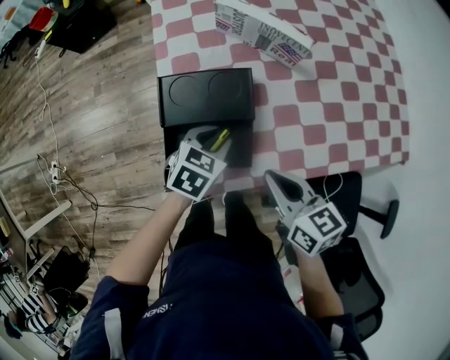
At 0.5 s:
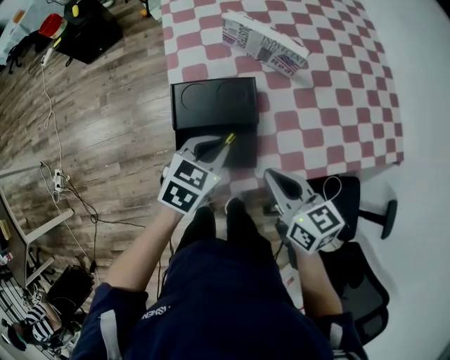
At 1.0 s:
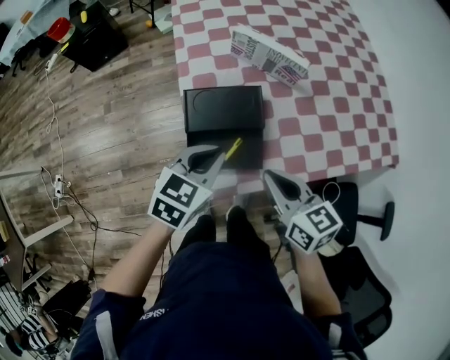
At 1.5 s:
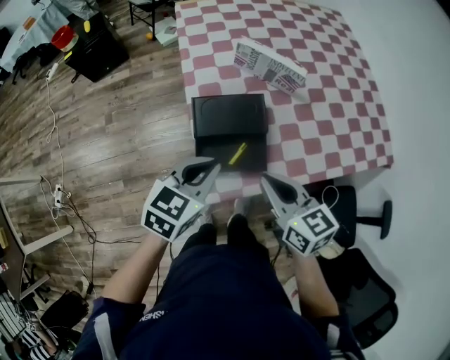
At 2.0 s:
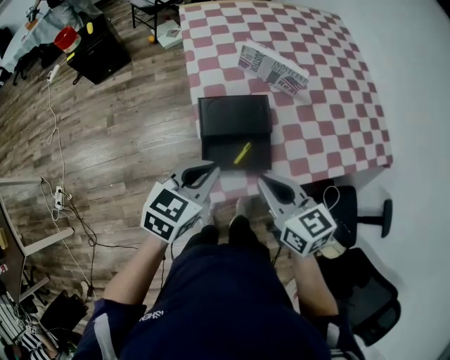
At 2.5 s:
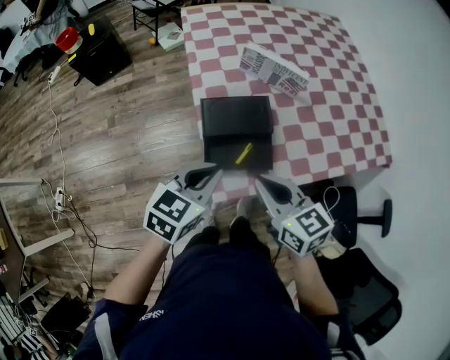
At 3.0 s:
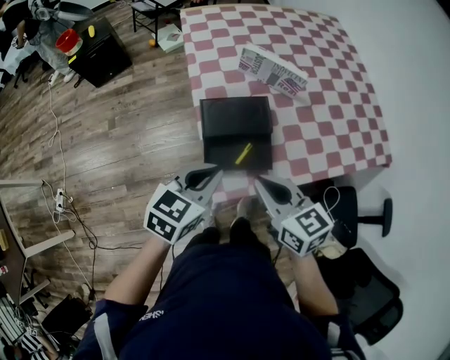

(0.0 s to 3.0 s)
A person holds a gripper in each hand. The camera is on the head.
0.0 s - 1.5 s: The left gripper heads upward, to the left and backward, covering about 20 cm, rotates approximately 20 degrees, and closes up, while the right gripper travels upward and to the left by approximately 10 cm.
1.5 s - 3.0 s: There are only small adjustments of the grippers.

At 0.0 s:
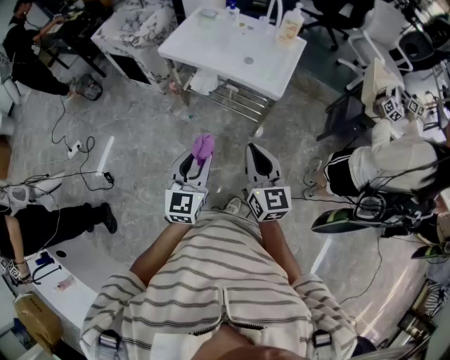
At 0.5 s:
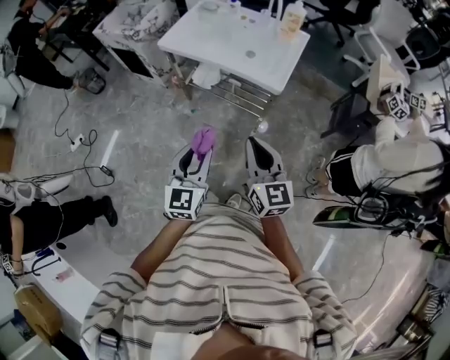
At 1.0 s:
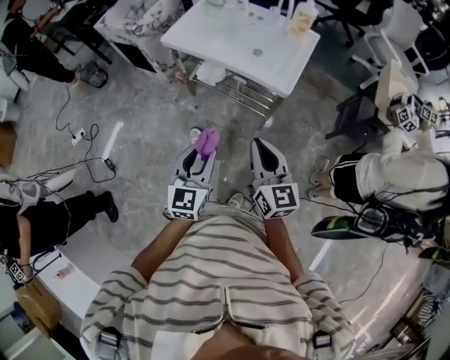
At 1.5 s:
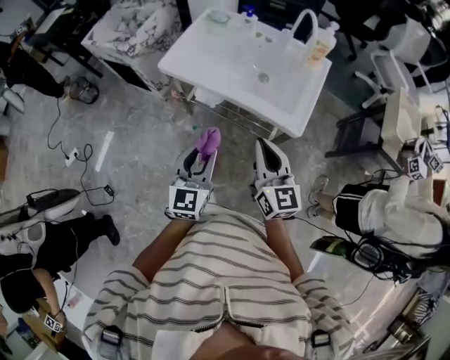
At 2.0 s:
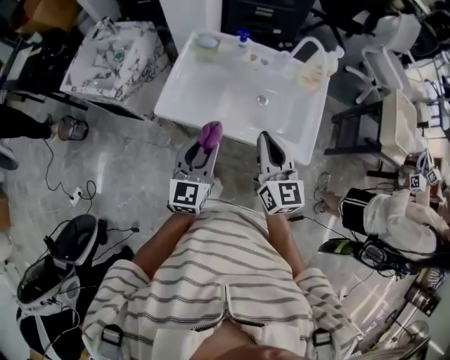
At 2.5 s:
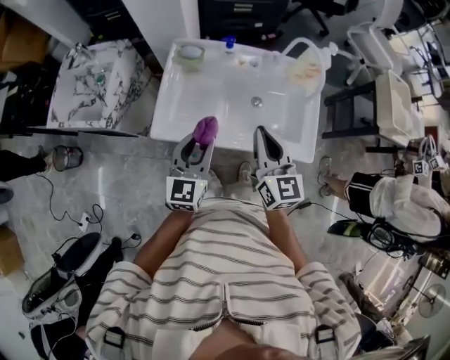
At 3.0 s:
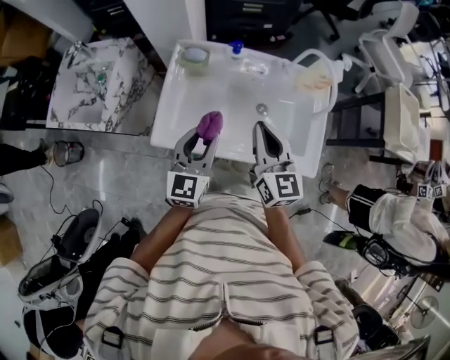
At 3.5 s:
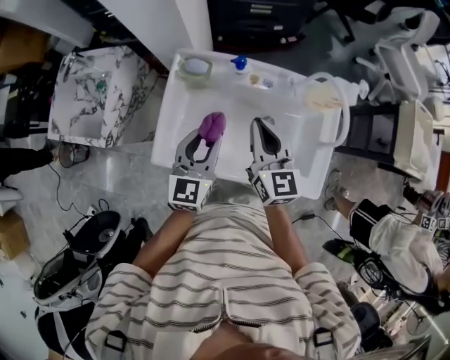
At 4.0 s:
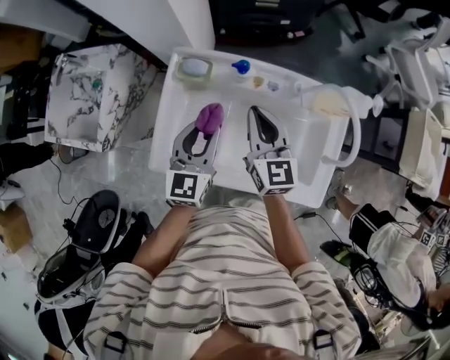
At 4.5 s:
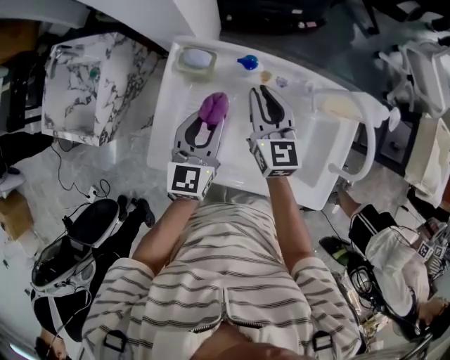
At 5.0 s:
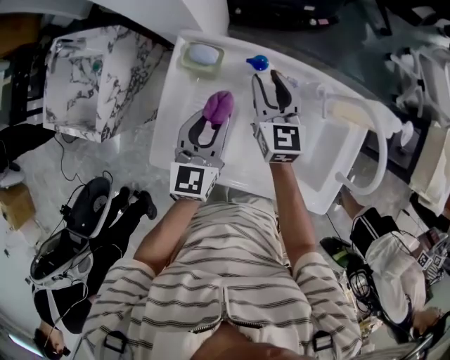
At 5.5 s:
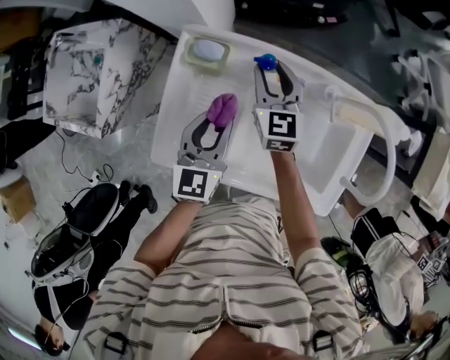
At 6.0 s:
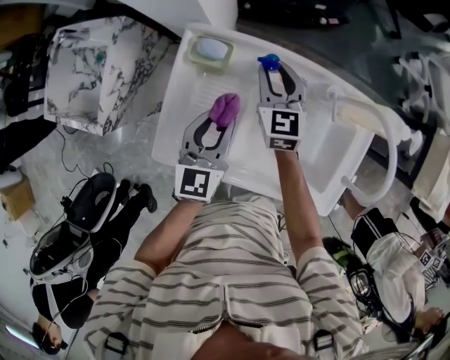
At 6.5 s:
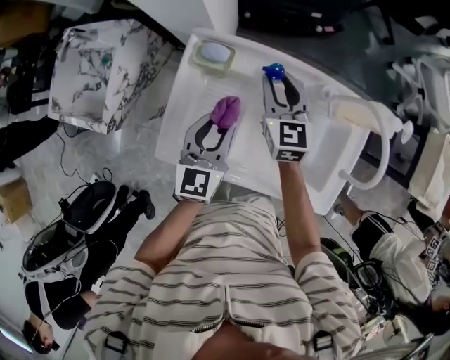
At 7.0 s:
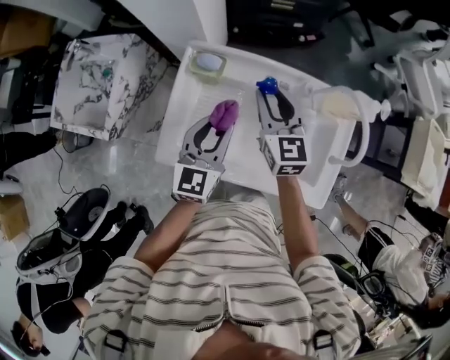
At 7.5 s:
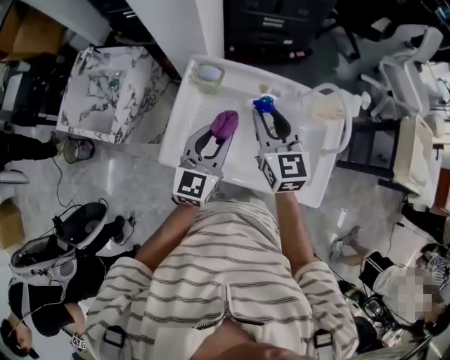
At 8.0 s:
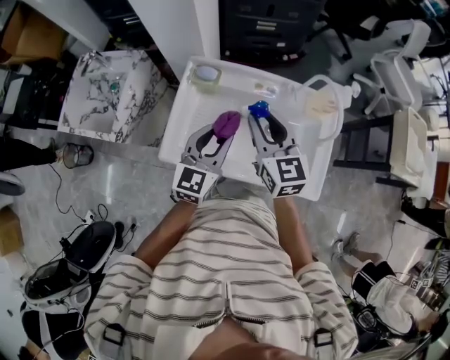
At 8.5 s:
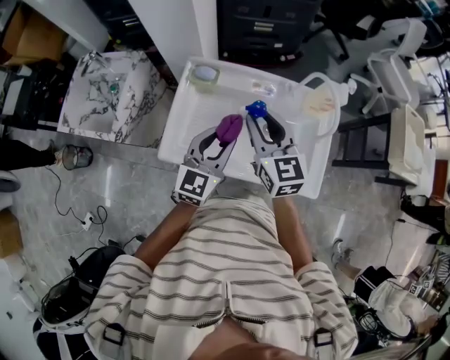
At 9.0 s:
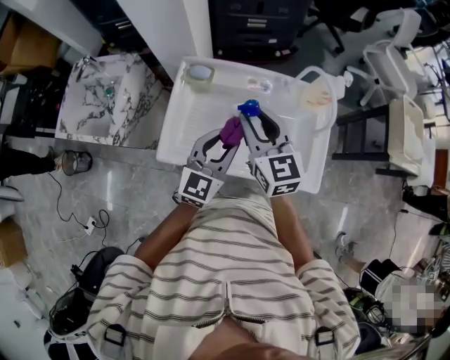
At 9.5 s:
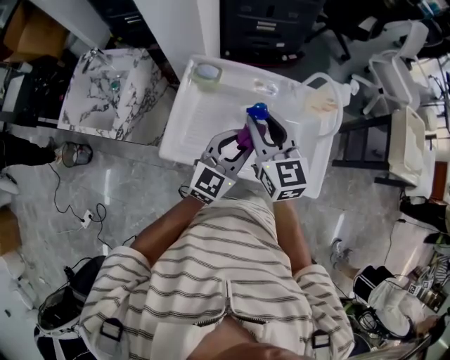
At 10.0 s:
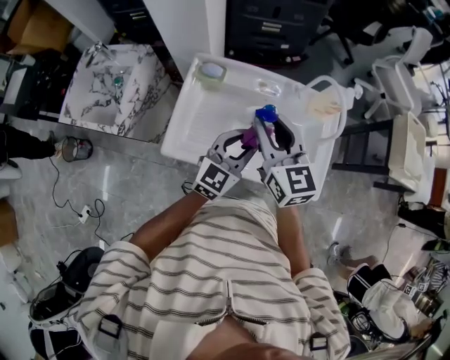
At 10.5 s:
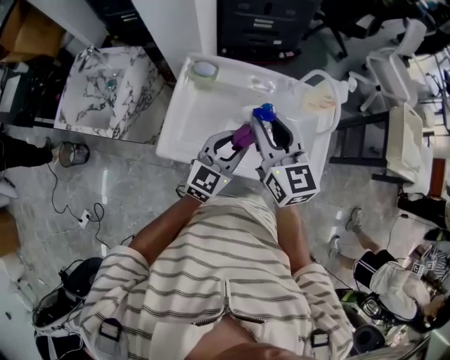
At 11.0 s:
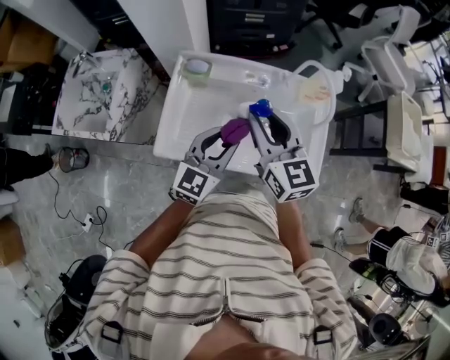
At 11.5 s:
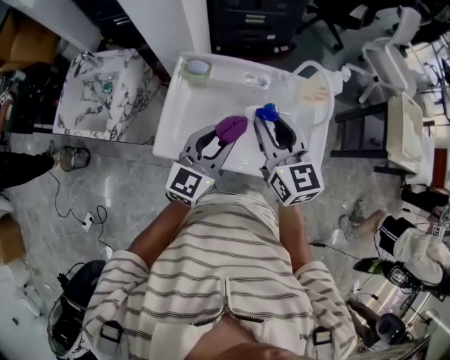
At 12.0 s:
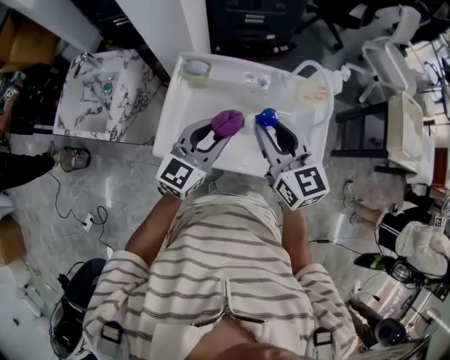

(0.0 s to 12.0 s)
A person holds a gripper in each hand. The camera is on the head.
0.0 s - 2.0 s: Both grippers are carried forward, approximately 50 cm.
2.0 s - 4.0 s: The grippers both shift forward by some 30 cm.
4.0 s - 6.0 s: The right gripper shifts some 15 cm forward and downward, and opens. The left gripper goes about 5 cm downward.
6.0 s - 8.0 s: The left gripper moves upward and backward, some 15 cm; the right gripper is displaced backward and upward by roughly 30 cm.
8.0 s - 10.0 s: The left gripper travels to the right by about 5 cm.
10.0 s - 12.0 s: The right gripper moves approximately 5 cm. Meanwhile the left gripper ends up approximately 5 cm from where it was.

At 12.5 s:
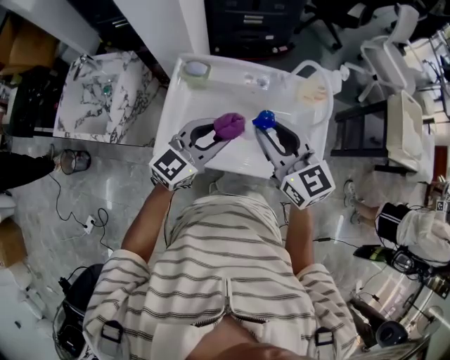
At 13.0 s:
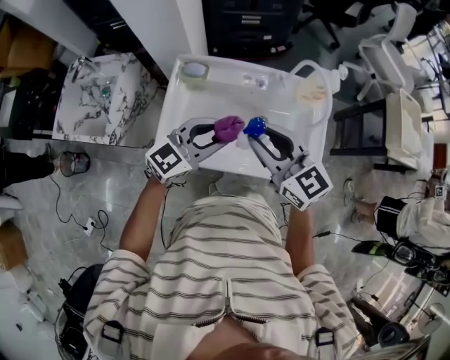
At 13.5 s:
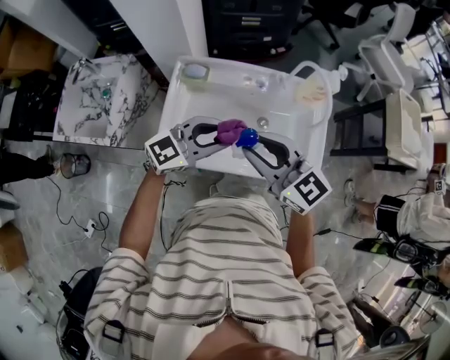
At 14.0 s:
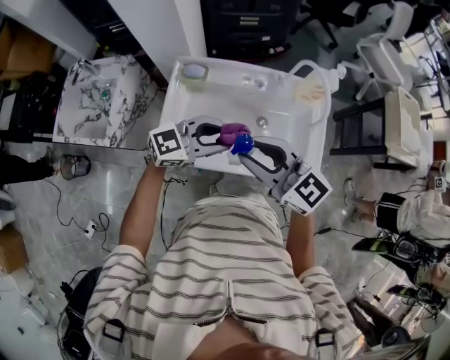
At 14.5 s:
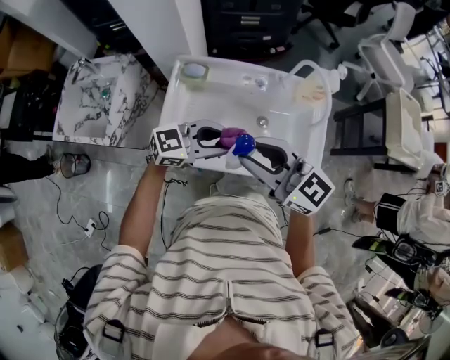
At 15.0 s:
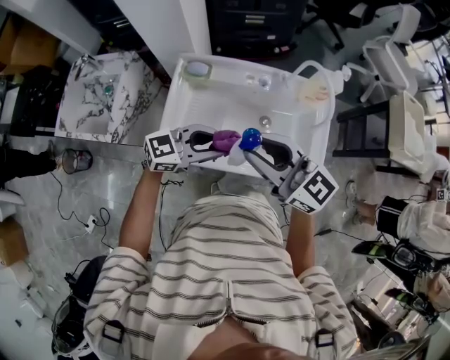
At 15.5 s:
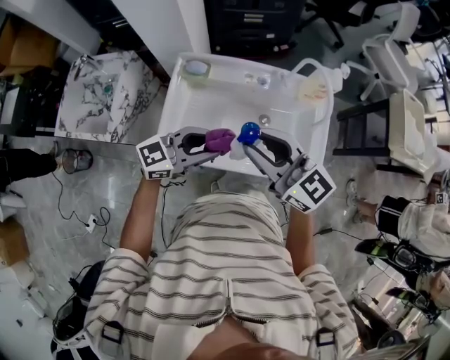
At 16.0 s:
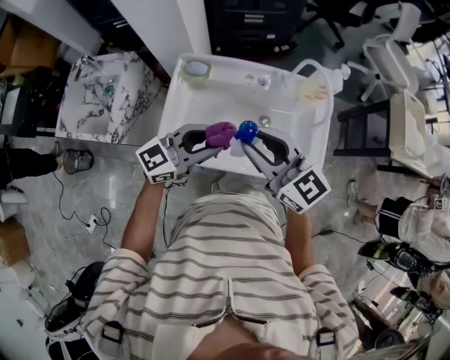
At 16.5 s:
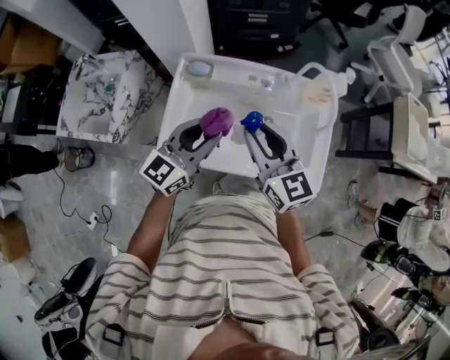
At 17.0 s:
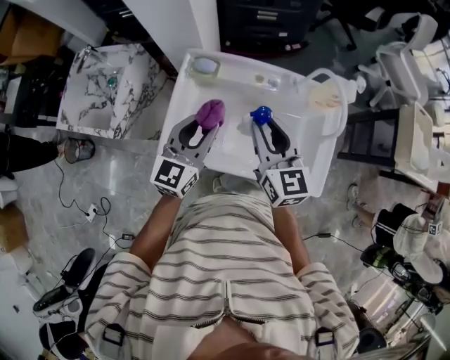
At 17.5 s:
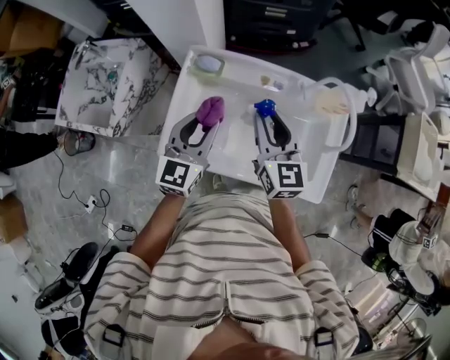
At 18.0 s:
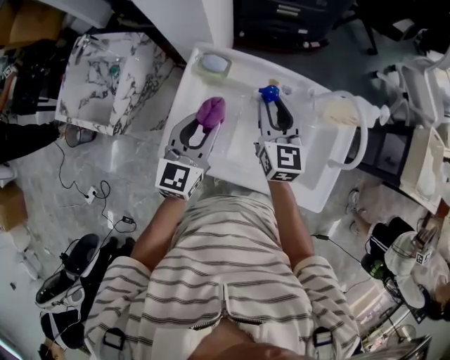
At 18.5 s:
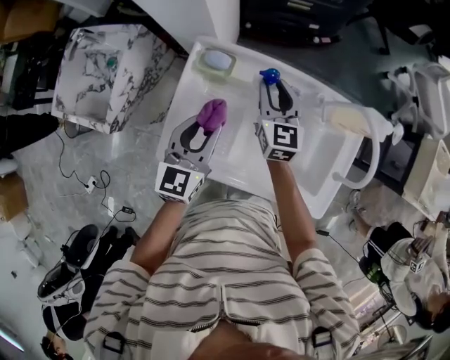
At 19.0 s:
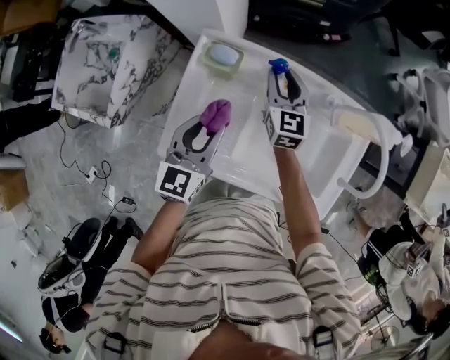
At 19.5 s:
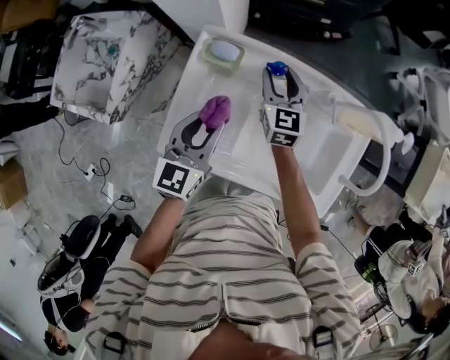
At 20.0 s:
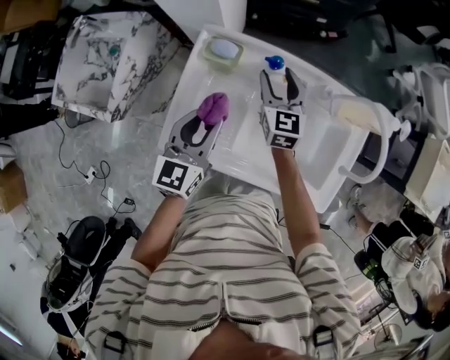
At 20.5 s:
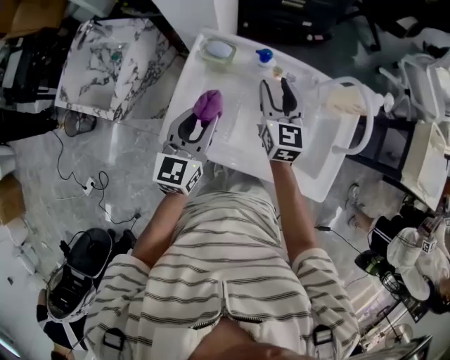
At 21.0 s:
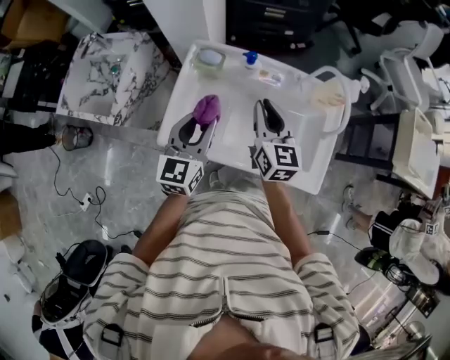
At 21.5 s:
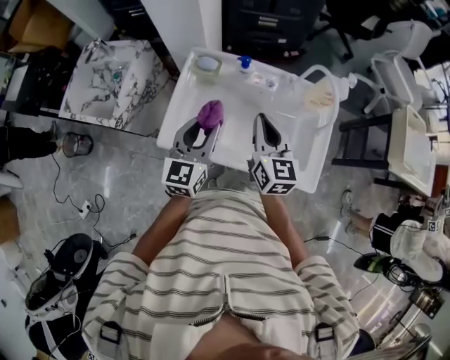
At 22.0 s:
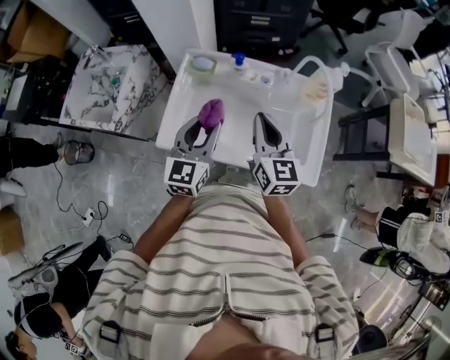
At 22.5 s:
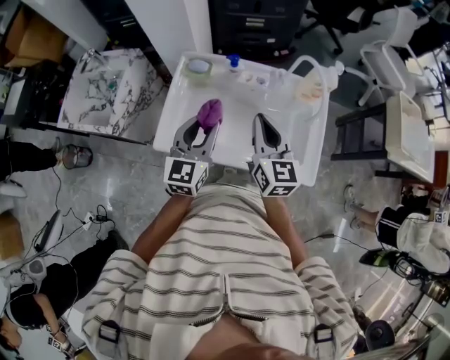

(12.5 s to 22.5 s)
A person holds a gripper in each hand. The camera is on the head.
12.5 s - 14.5 s: The right gripper shifts by about 5 cm, and swivels about 20 degrees, while the left gripper turns by roughly 30 degrees.
14.5 s - 16.5 s: The right gripper moves some 10 cm, and changes its angle by approximately 30 degrees. Meanwhile the left gripper shifts by approximately 10 cm, and rotates approximately 40 degrees.
16.5 s - 18.5 s: The left gripper is displaced forward, downward and to the left by approximately 15 cm, and changes its angle by about 30 degrees. The right gripper shifts about 30 cm forward and downward.
18.5 s - 20.5 s: The grippers both shift backward by some 5 cm.
20.5 s - 22.5 s: The left gripper is displaced backward and to the right by approximately 10 cm. Meanwhile the right gripper is displaced backward and upward by approximately 20 cm, and closes up.

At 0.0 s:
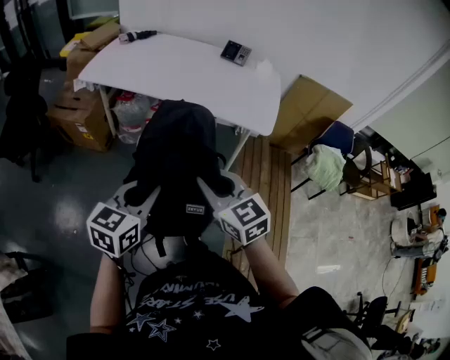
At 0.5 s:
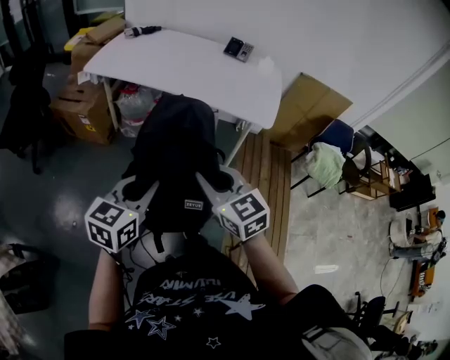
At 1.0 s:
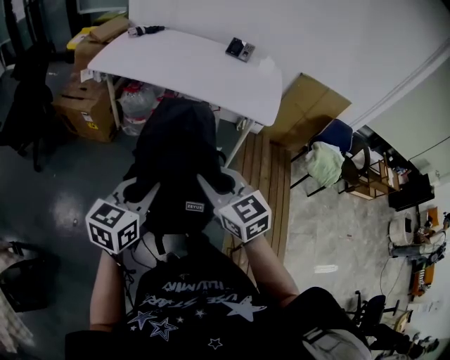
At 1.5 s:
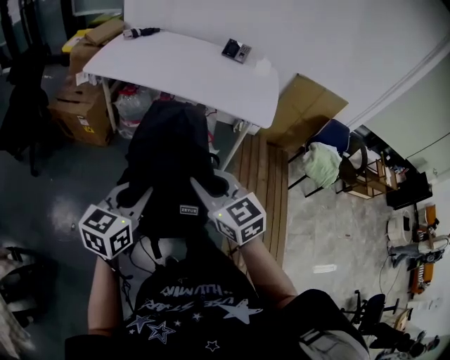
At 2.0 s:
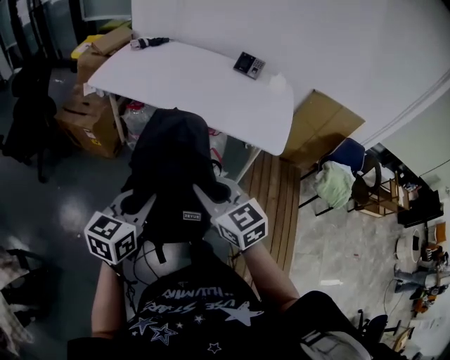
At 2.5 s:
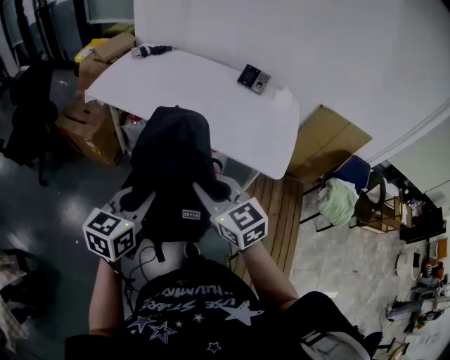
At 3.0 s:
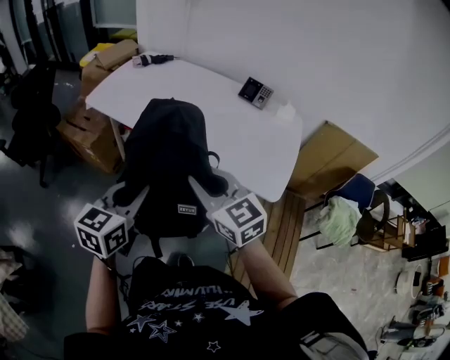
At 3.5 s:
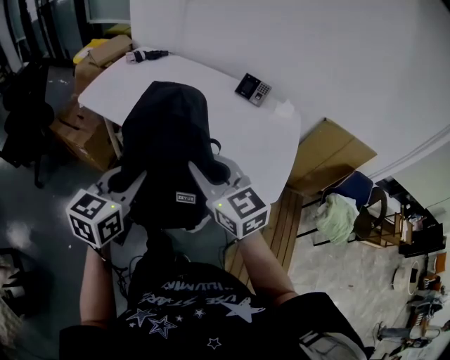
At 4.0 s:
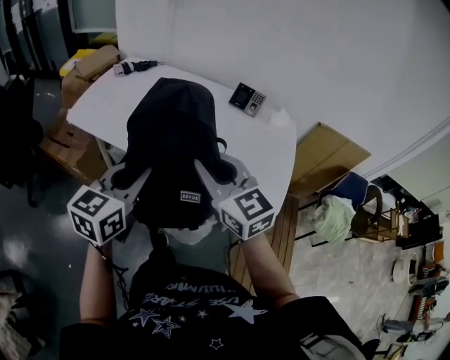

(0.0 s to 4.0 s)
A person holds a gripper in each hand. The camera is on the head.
0.0 s - 2.0 s: The grippers both shift forward by roughly 5 cm.
2.0 s - 4.0 s: Both grippers move forward, about 30 cm.
